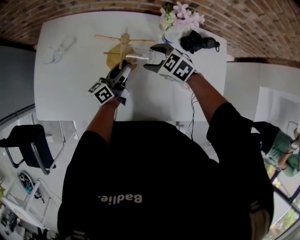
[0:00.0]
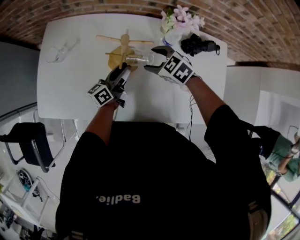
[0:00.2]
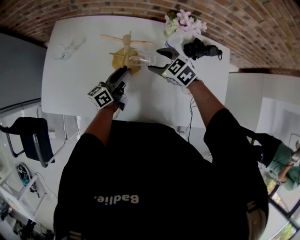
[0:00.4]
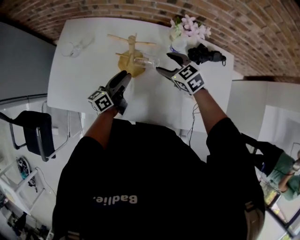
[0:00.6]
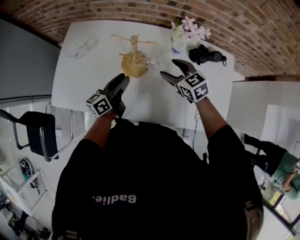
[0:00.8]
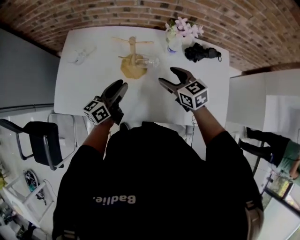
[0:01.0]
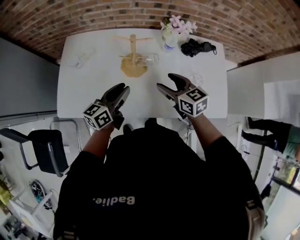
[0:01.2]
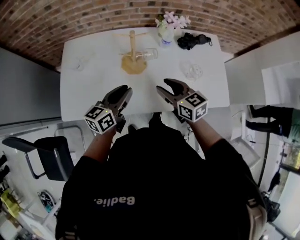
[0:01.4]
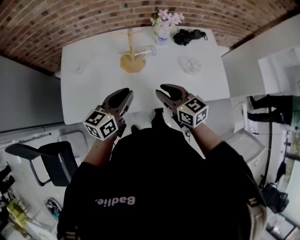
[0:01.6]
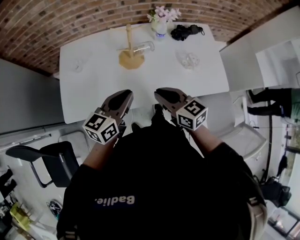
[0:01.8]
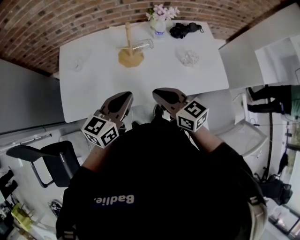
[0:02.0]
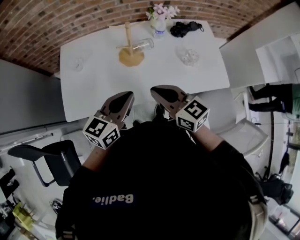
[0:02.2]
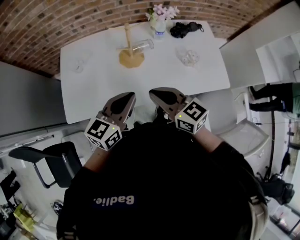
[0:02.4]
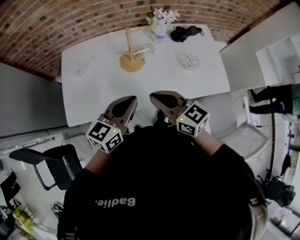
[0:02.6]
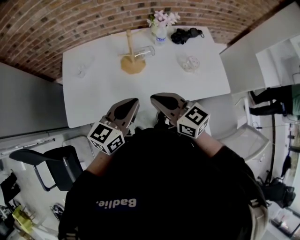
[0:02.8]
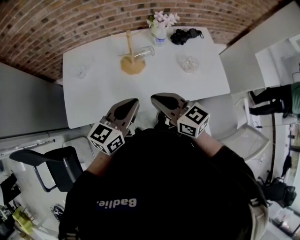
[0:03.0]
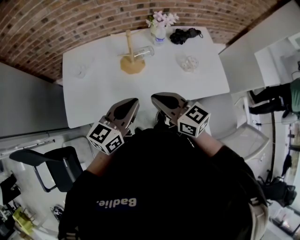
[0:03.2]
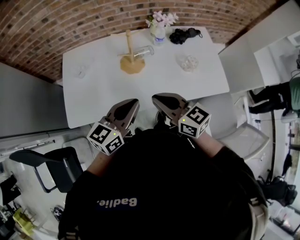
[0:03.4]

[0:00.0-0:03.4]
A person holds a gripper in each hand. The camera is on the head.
0:00.0 to 0:01.6: The right gripper is displaced backward and upward by some 25 cm, tilts its fingers roughly 30 degrees upward, and closes. Meanwhile the left gripper is displaced backward, upward and to the left by some 30 cm, changes its angle by some 40 degrees, and closes its fingers.
0:01.6 to 0:03.4: The right gripper is displaced upward and backward by approximately 10 cm, while the left gripper is displaced backward and upward by about 10 cm.

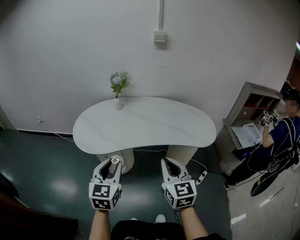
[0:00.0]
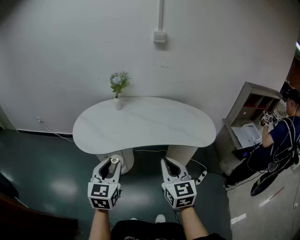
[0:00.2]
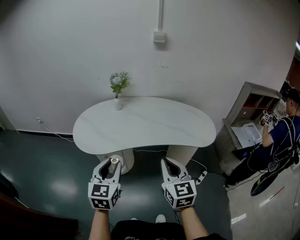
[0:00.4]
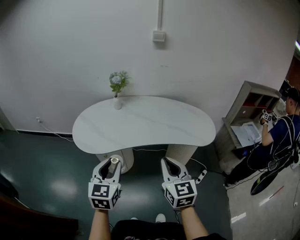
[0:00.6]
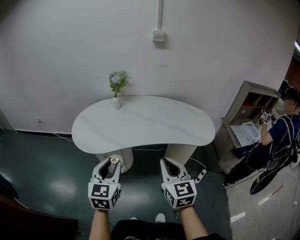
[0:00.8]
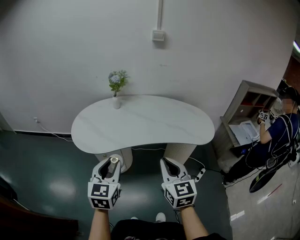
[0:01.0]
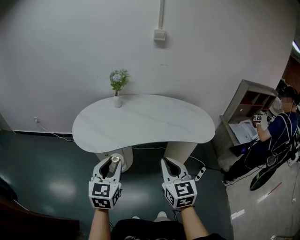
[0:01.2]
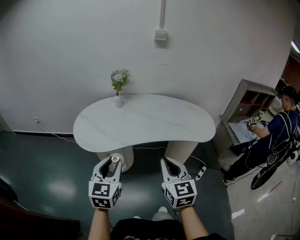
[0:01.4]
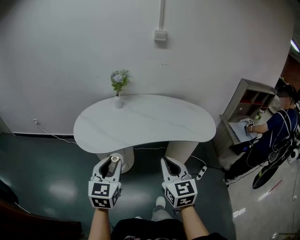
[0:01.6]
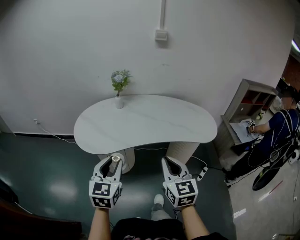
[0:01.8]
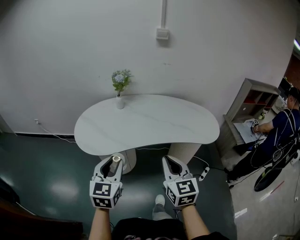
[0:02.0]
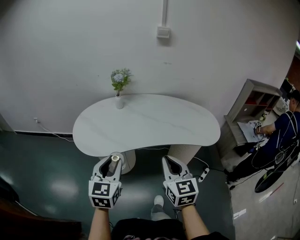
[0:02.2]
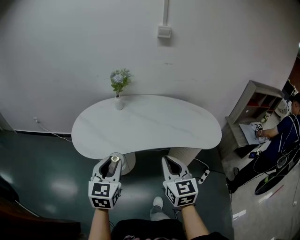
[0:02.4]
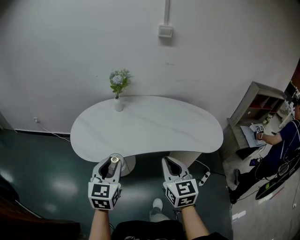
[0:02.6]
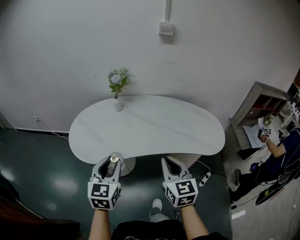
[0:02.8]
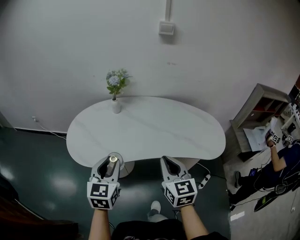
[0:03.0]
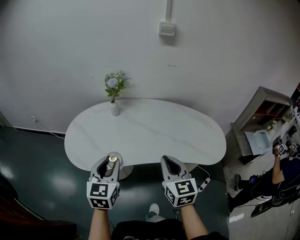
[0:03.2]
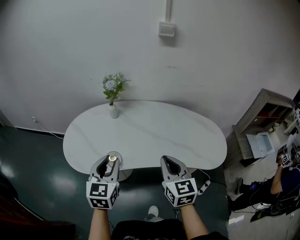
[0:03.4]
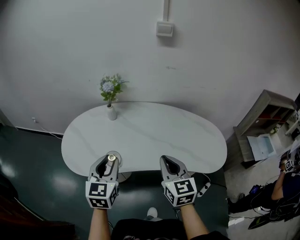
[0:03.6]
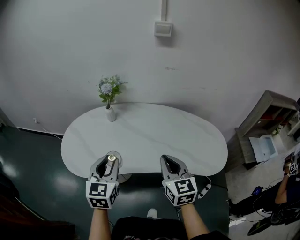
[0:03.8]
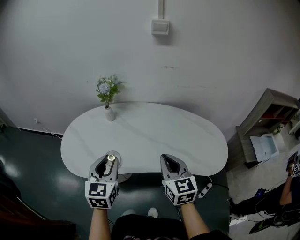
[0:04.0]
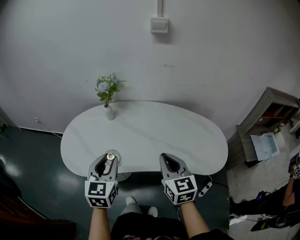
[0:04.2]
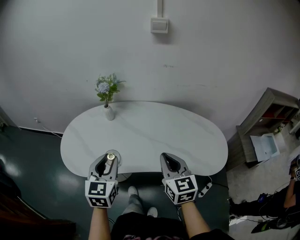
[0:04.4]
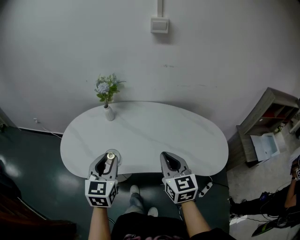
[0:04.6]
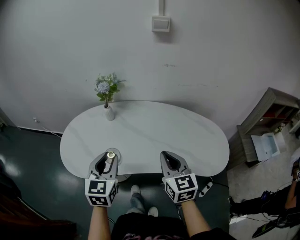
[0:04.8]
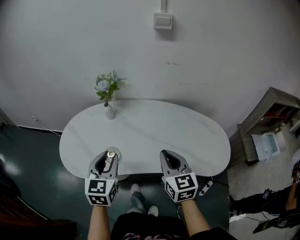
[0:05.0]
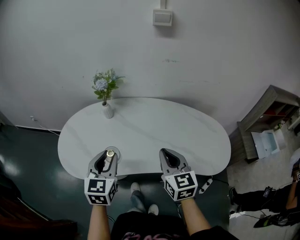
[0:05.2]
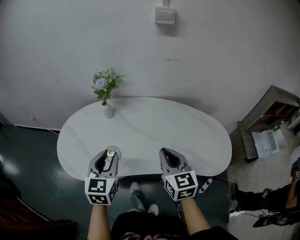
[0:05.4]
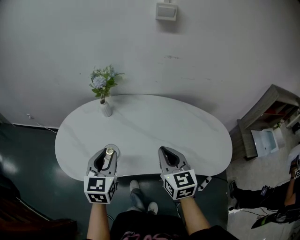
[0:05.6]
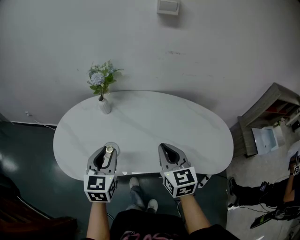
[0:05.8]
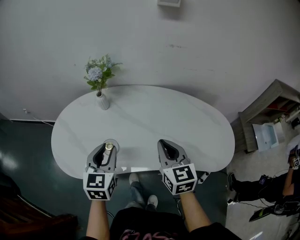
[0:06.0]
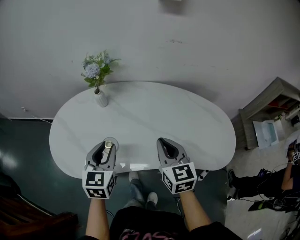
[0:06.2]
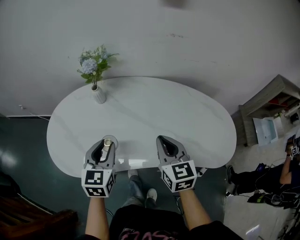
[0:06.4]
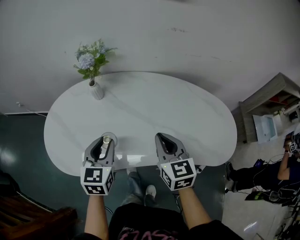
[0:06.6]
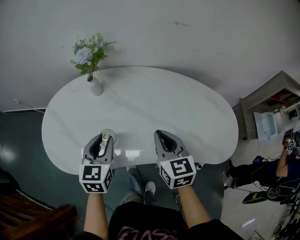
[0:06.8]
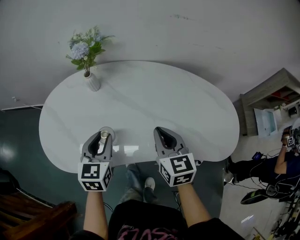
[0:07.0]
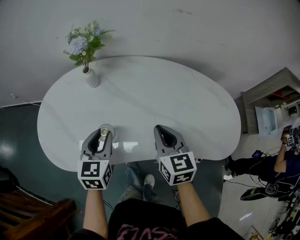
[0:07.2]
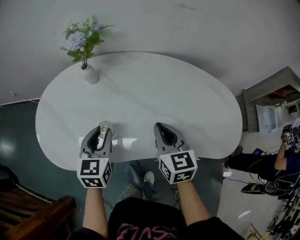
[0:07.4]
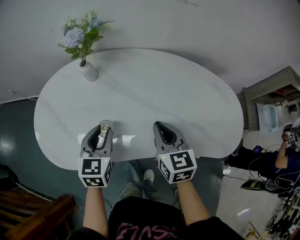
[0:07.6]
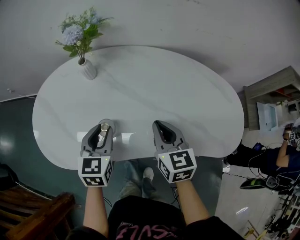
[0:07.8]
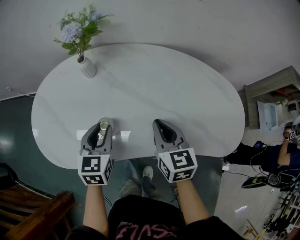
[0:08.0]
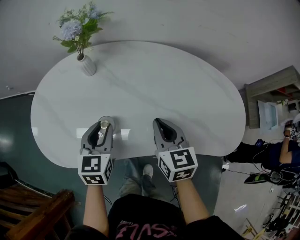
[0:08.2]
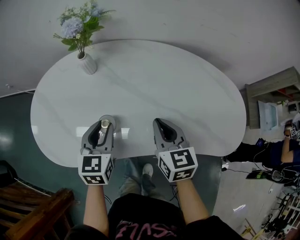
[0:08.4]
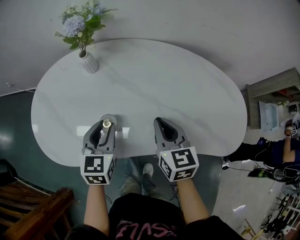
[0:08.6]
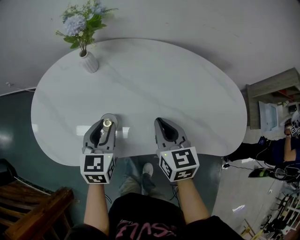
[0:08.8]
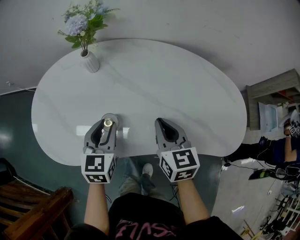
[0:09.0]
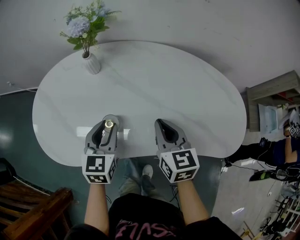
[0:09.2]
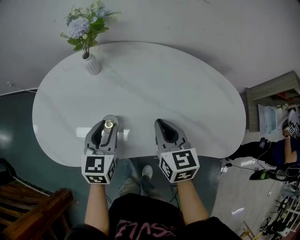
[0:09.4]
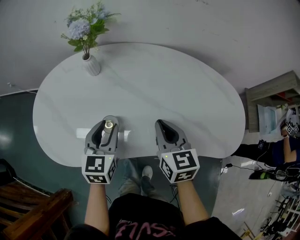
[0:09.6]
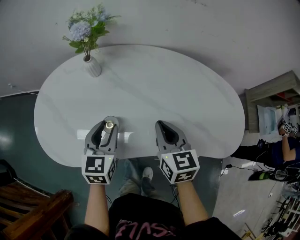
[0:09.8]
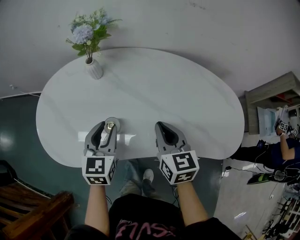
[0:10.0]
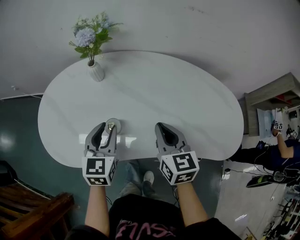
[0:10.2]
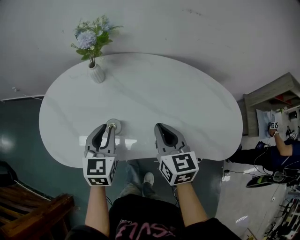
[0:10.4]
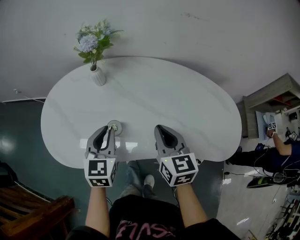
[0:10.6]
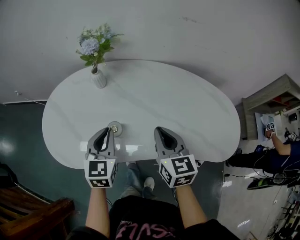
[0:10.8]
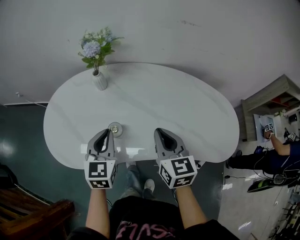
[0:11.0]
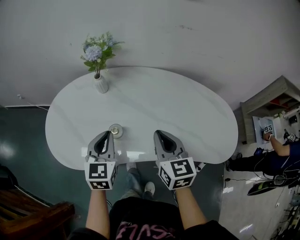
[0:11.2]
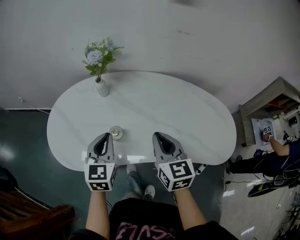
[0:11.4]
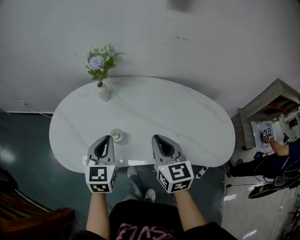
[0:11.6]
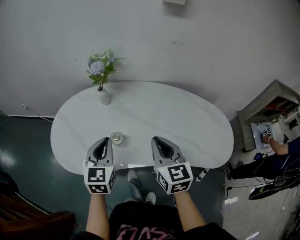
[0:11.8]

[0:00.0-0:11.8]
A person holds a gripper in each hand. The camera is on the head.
0:00.0 to 0:01.4: The grippers move only a little.
0:01.4 to 0:03.0: Both grippers move forward, approximately 15 cm.
0:03.0 to 0:04.4: Both grippers travel together forward and to the right, some 10 cm.
0:04.4 to 0:06.0: The right gripper moves forward, approximately 10 cm. The left gripper moves forward and downward, approximately 10 cm.
0:06.0 to 0:07.4: Both grippers travel together downward, some 10 cm.
0:07.4 to 0:10.4: The grippers make only small movements.
0:10.4 to 0:11.8: Both grippers move upward, roughly 10 cm.

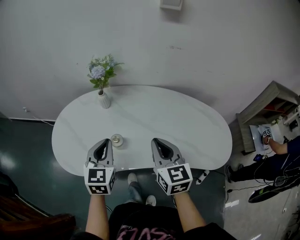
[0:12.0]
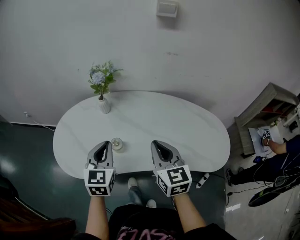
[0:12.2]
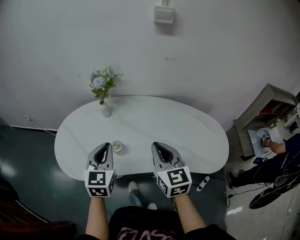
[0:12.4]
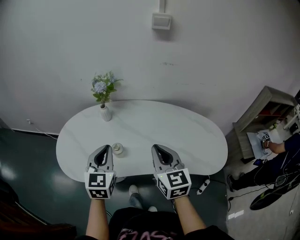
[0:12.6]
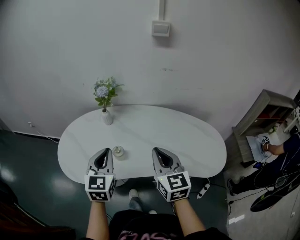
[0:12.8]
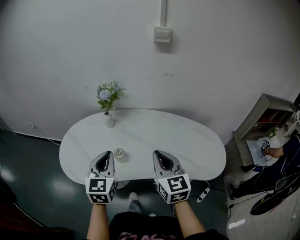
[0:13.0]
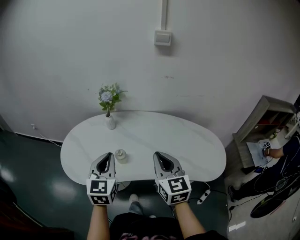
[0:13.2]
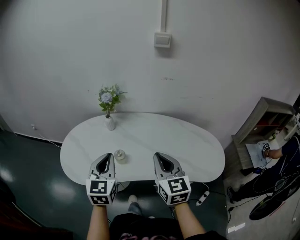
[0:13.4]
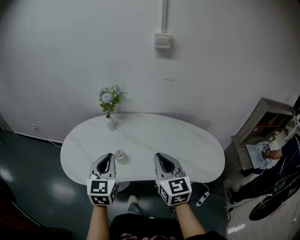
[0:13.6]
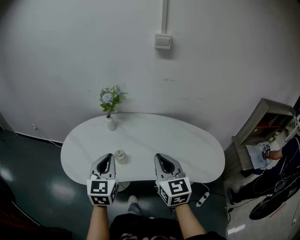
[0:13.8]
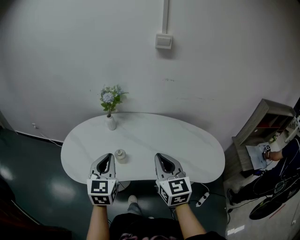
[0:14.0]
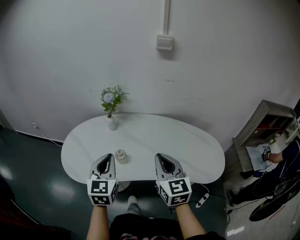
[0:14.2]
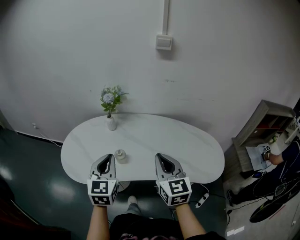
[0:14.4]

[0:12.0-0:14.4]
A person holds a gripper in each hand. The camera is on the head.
0:12.0 to 0:13.2: The grippers both shift upward and backward by roughly 10 cm.
0:13.2 to 0:14.4: The grippers make only small movements.

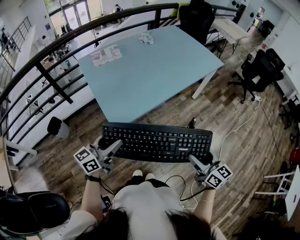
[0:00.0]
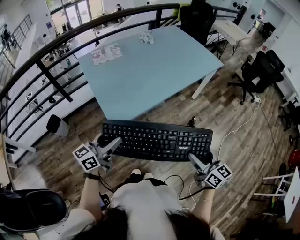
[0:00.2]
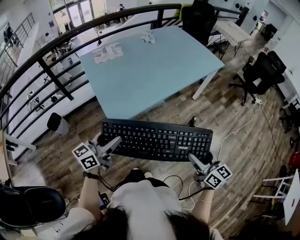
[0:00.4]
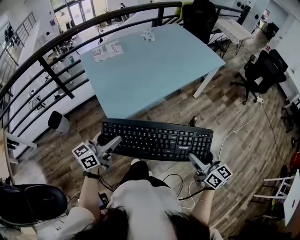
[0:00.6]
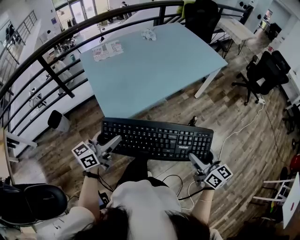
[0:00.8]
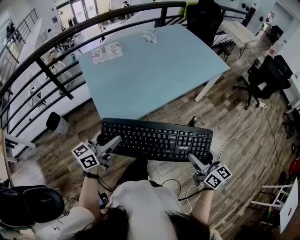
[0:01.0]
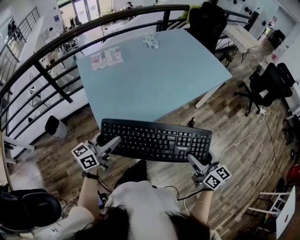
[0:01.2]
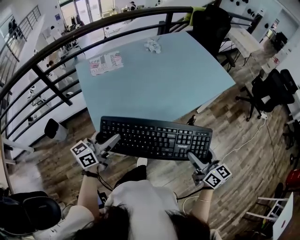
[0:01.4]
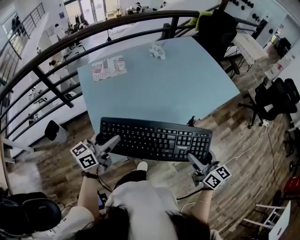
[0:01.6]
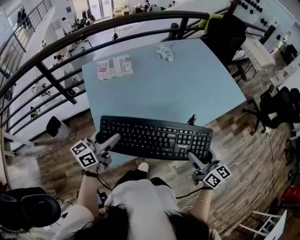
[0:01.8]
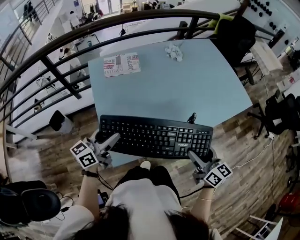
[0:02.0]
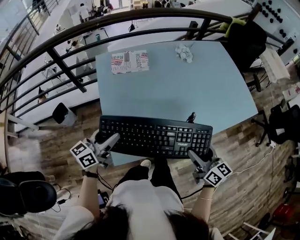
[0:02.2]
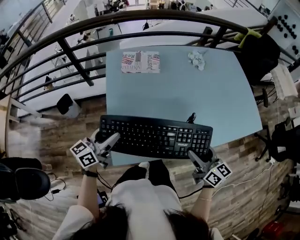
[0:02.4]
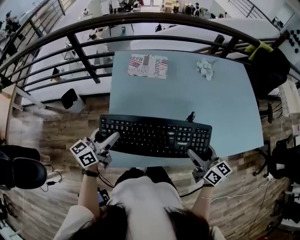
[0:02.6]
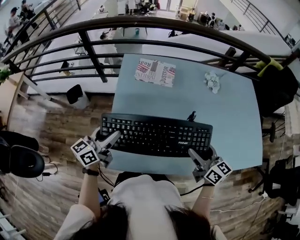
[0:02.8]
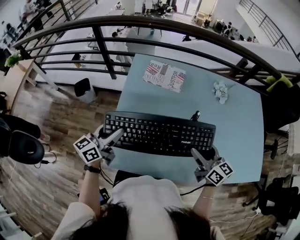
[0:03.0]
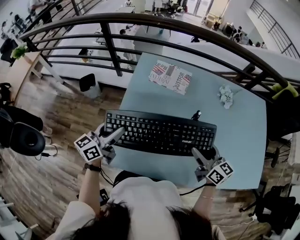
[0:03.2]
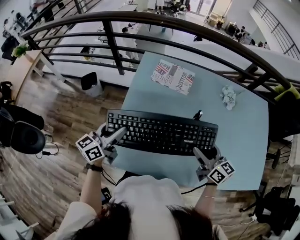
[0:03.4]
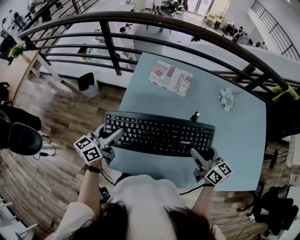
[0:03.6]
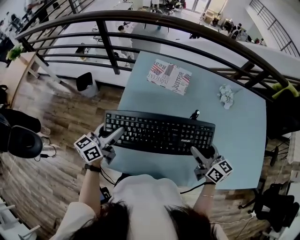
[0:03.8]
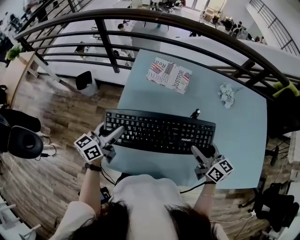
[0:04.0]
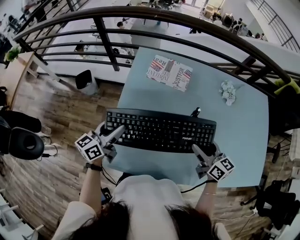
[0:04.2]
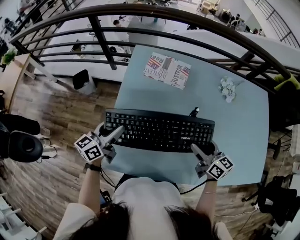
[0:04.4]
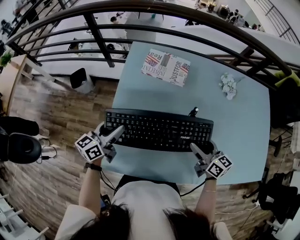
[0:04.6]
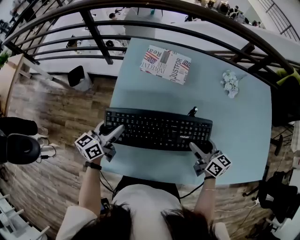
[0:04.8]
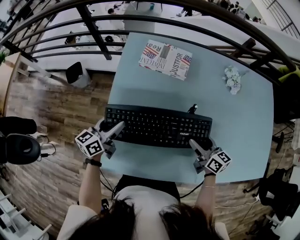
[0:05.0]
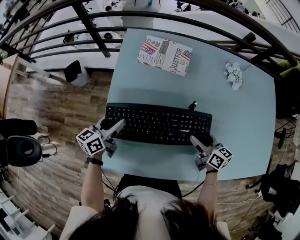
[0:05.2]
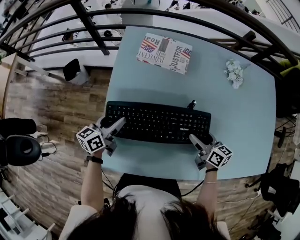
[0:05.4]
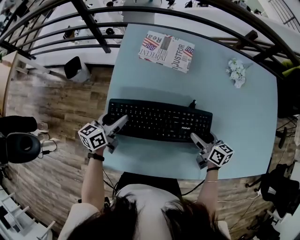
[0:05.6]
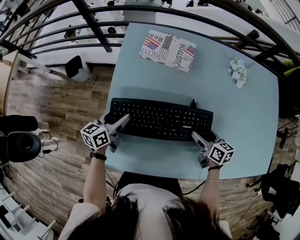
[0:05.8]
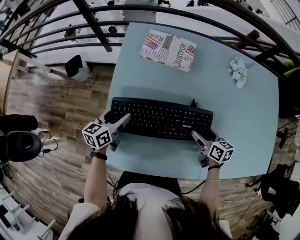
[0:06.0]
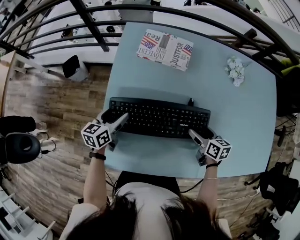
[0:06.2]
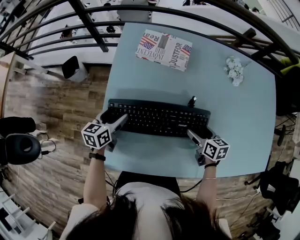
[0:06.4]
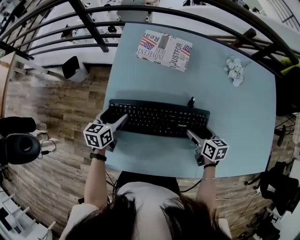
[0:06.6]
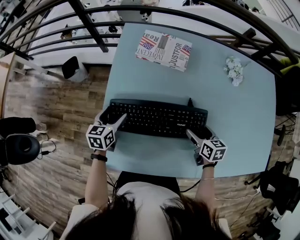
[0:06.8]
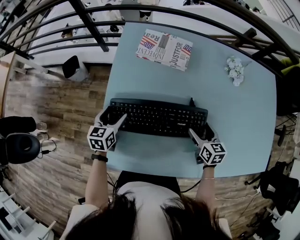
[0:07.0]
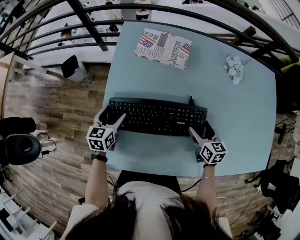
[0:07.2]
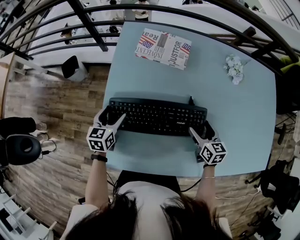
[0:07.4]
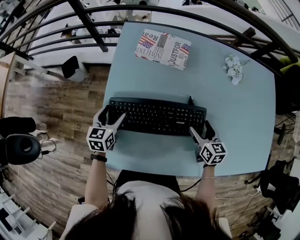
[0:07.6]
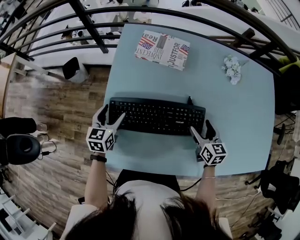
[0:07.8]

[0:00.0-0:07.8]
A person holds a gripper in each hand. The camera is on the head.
0:00.0 to 0:01.6: The grippers both shift forward by roughly 25 cm.
0:01.6 to 0:03.2: The right gripper moves about 35 cm, and swivels some 40 degrees; the left gripper ends up some 15 cm from where it was, and turns by roughly 40 degrees.
0:03.2 to 0:04.6: The two grippers go roughly 5 cm downward.
0:04.6 to 0:06.2: The grippers both shift downward by approximately 10 cm. The right gripper swivels roughly 20 degrees.
0:06.2 to 0:07.8: The right gripper rotates about 20 degrees, while the left gripper turns by approximately 20 degrees.
